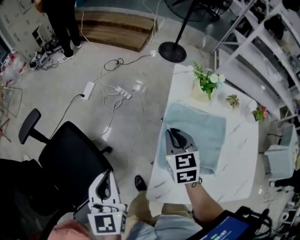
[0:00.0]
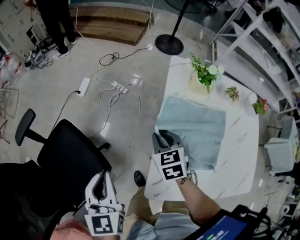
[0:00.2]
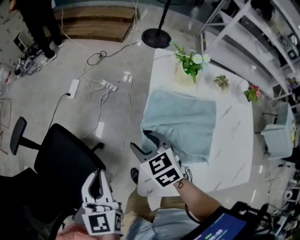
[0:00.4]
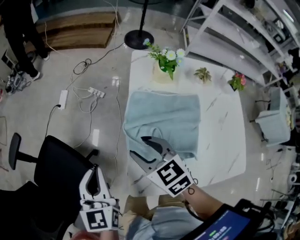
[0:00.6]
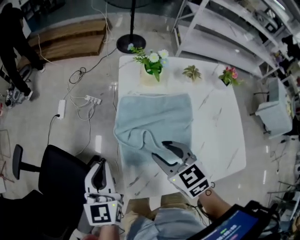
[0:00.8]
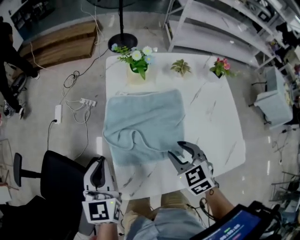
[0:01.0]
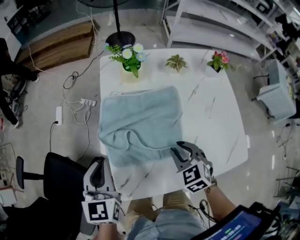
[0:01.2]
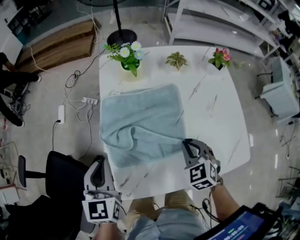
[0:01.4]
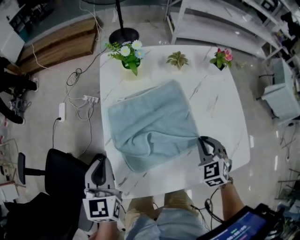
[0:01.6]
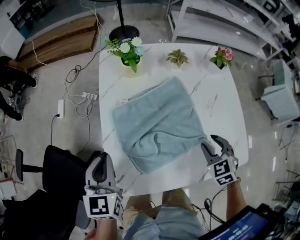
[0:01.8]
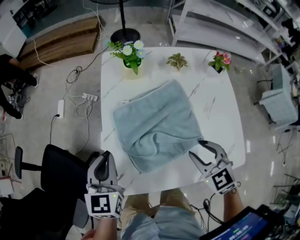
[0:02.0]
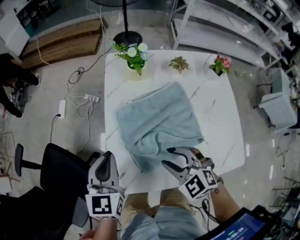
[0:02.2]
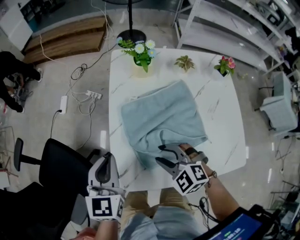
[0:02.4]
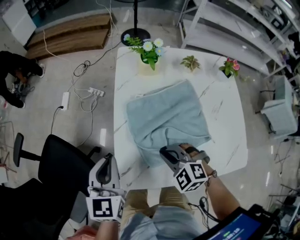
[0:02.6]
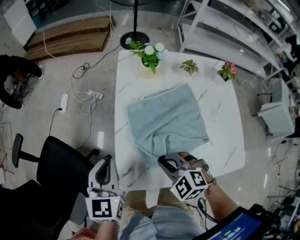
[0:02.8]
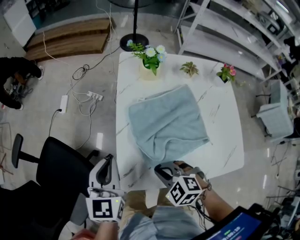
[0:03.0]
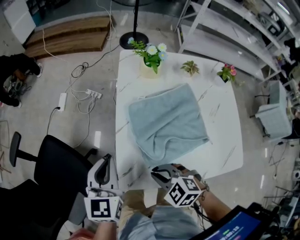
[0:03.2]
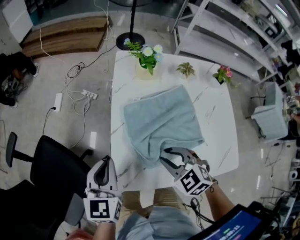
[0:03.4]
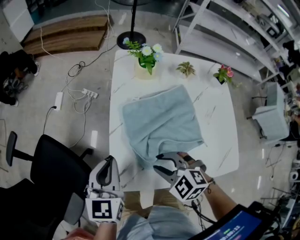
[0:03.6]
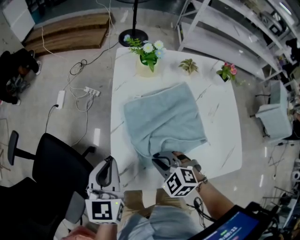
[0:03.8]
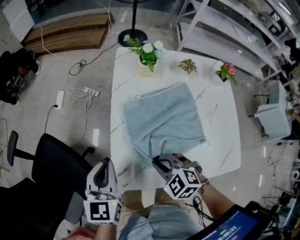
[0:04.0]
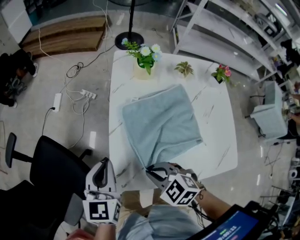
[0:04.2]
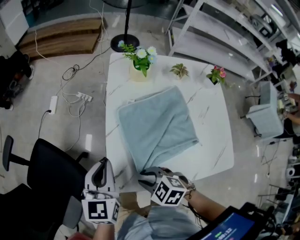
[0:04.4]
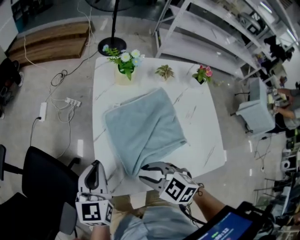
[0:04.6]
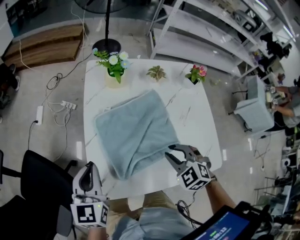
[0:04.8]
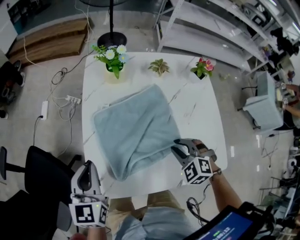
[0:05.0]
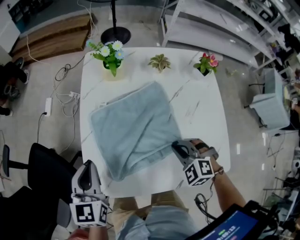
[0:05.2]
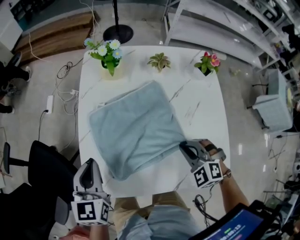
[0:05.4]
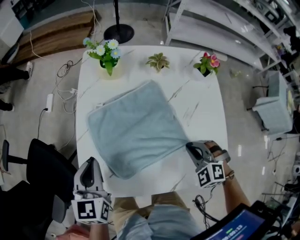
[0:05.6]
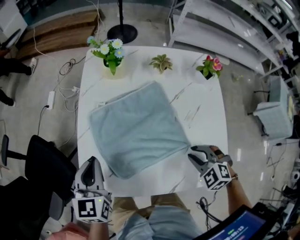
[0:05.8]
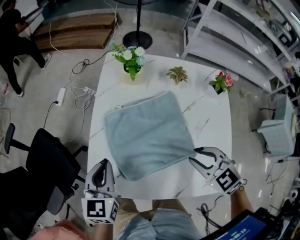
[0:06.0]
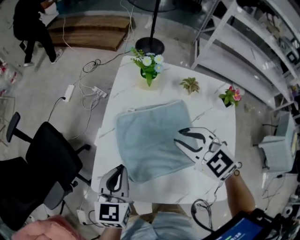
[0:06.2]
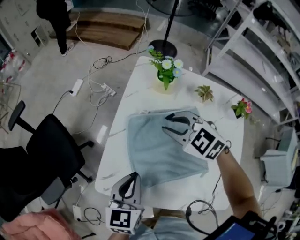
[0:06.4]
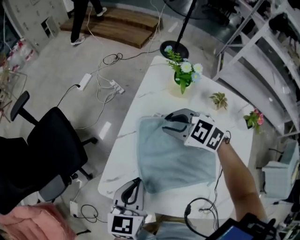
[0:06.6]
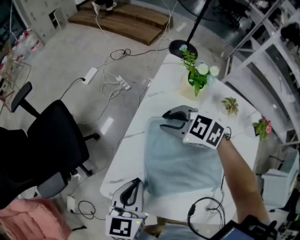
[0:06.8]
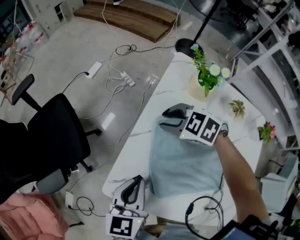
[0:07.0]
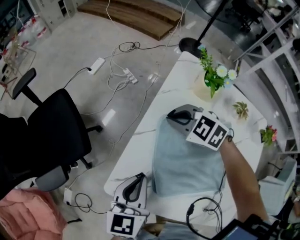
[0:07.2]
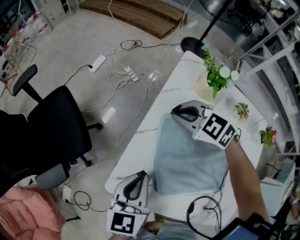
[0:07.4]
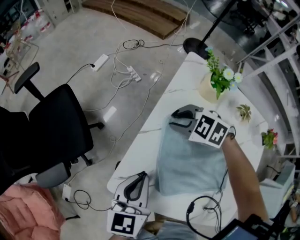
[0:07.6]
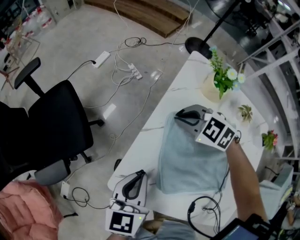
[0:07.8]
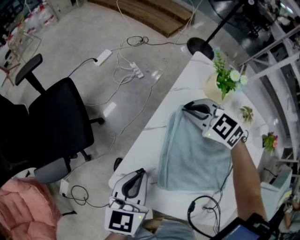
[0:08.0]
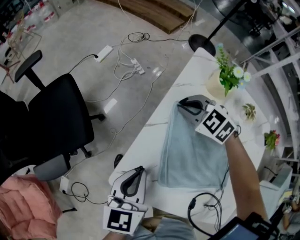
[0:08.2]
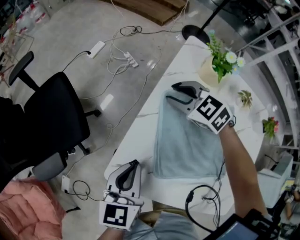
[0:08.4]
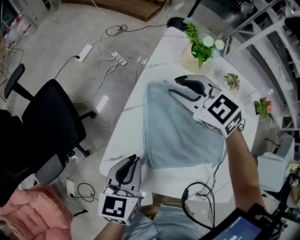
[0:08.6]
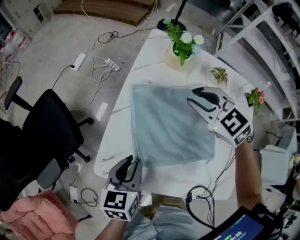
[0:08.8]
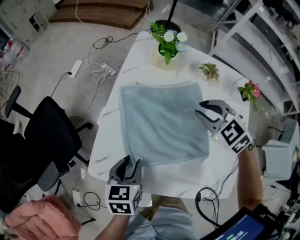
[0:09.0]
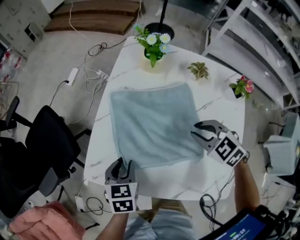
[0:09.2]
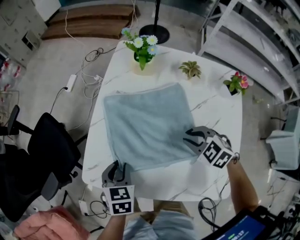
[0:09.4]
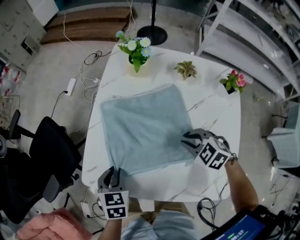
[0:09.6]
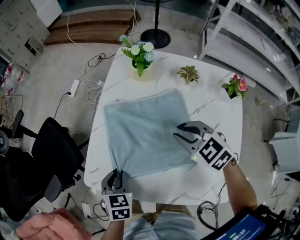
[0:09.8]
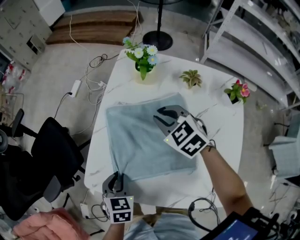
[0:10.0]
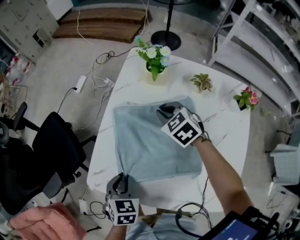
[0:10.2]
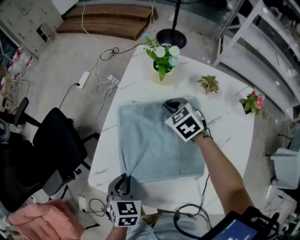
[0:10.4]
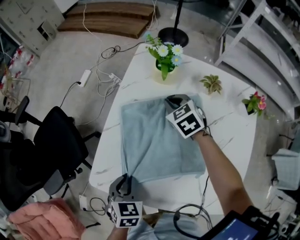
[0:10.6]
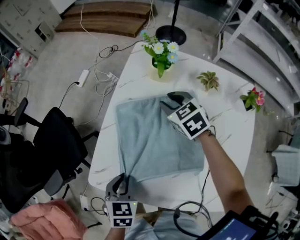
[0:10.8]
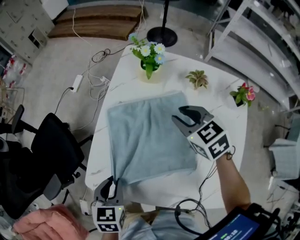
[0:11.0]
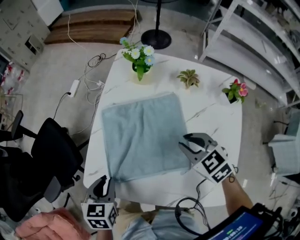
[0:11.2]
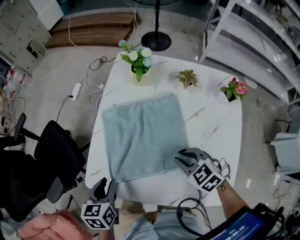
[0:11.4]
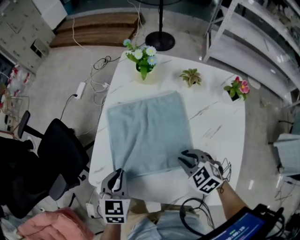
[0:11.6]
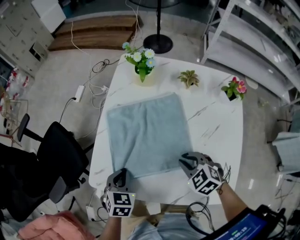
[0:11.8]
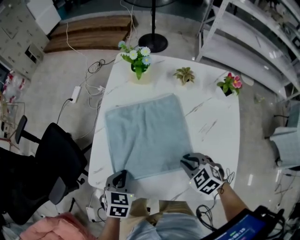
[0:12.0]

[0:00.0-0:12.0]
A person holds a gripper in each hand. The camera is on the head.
0:00.0 to 0:01.6: The left gripper shifts by approximately 20 cm, and turns by about 20 degrees. Meanwhile the right gripper moves up and down over roughly 10 cm, changing direction 2 times, swivels about 20 degrees, and opens, then closes again.
0:01.6 to 0:03.0: The left gripper moves roughly 5 cm. Meanwhile the right gripper ends up some 25 cm from where it was, swivels roughly 50 degrees, and opens, then closes again.
0:03.0 to 0:04.4: The right gripper travels to the right and back again, approximately 5 cm each way.
0:04.4 to 0:06.0: The left gripper changes place by about 10 cm, while the right gripper moves up and down over about 10 cm, changing direction 2 times.
0:06.0 to 0:07.6: The right gripper moves approximately 35 cm, turns by about 40 degrees, and closes, then reopens; the left gripper moves about 5 cm.
0:07.6 to 0:09.0: The right gripper changes place by about 25 cm, and turns by approximately 30 degrees, while the left gripper ends up some 10 cm from where it was, turns by some 20 degrees, and opens up.
0:09.0 to 0:10.4: The right gripper heads forward and downward, covering approximately 15 cm, while the left gripper rotates about 20 degrees.
0:10.4 to 0:12.0: The right gripper goes some 30 cm backward.

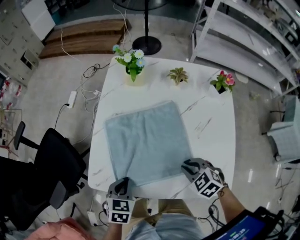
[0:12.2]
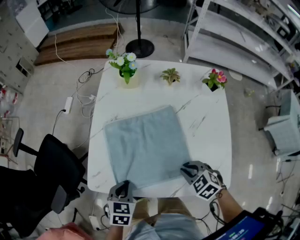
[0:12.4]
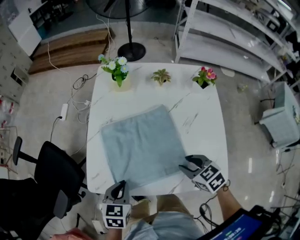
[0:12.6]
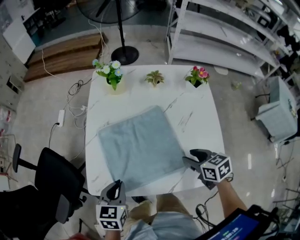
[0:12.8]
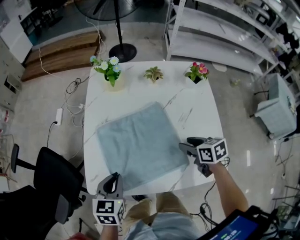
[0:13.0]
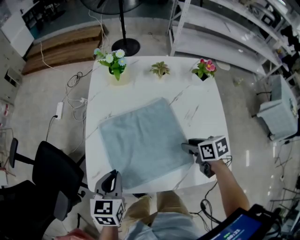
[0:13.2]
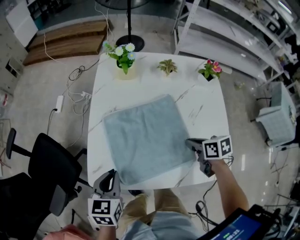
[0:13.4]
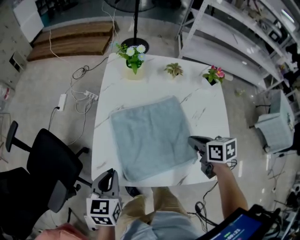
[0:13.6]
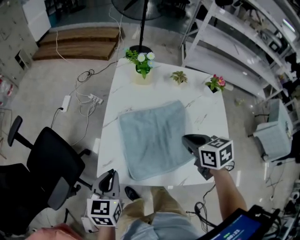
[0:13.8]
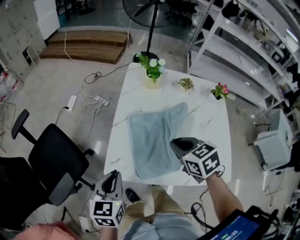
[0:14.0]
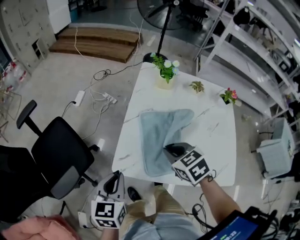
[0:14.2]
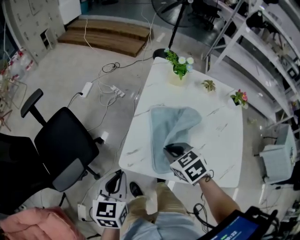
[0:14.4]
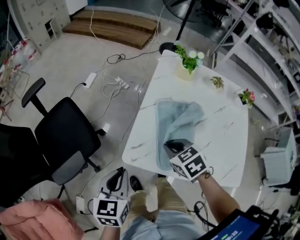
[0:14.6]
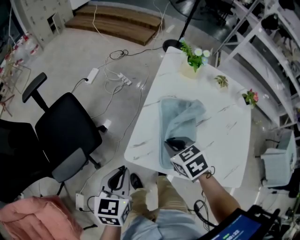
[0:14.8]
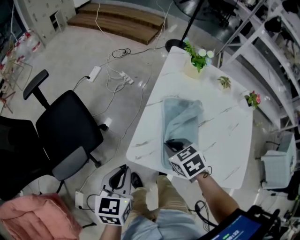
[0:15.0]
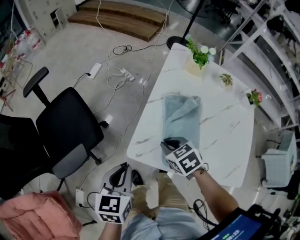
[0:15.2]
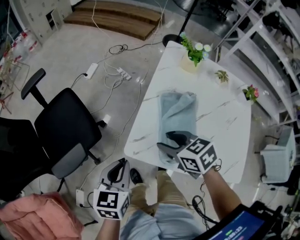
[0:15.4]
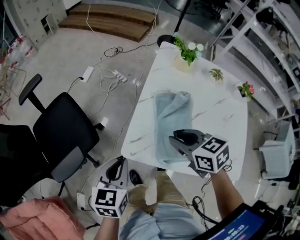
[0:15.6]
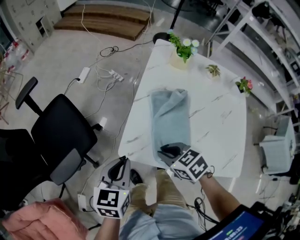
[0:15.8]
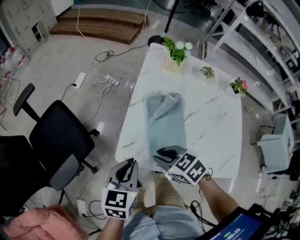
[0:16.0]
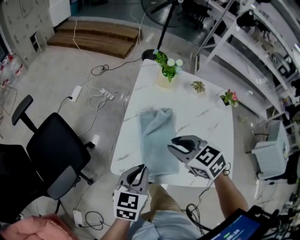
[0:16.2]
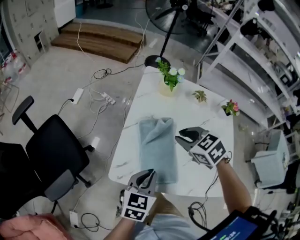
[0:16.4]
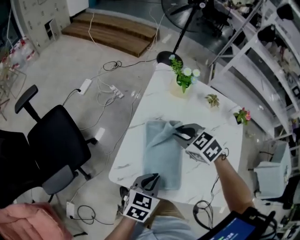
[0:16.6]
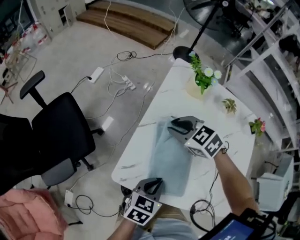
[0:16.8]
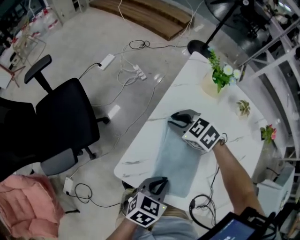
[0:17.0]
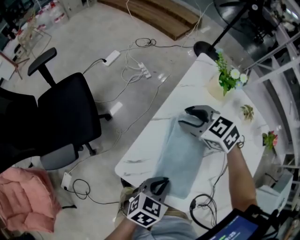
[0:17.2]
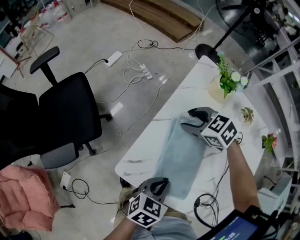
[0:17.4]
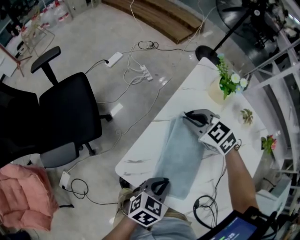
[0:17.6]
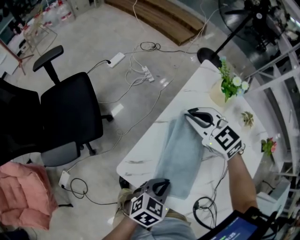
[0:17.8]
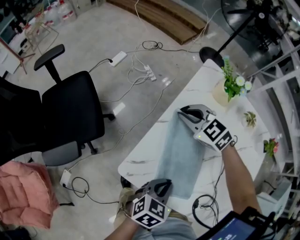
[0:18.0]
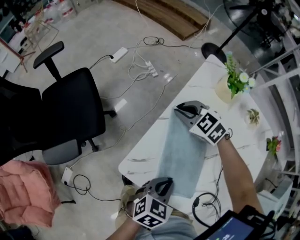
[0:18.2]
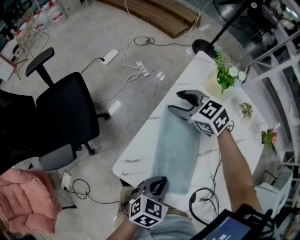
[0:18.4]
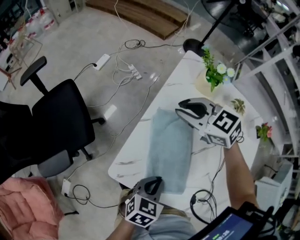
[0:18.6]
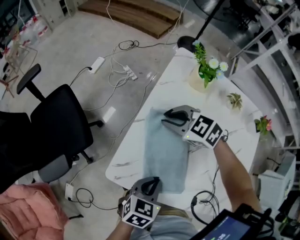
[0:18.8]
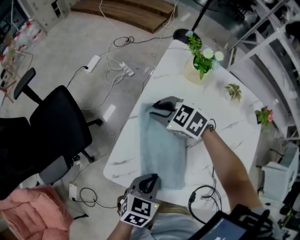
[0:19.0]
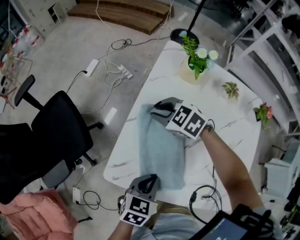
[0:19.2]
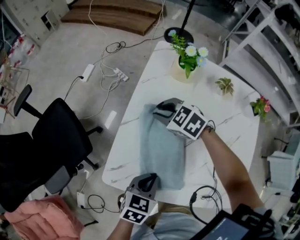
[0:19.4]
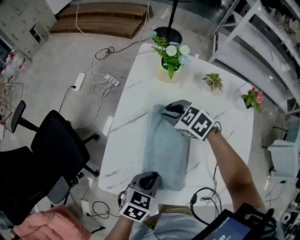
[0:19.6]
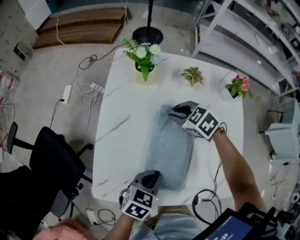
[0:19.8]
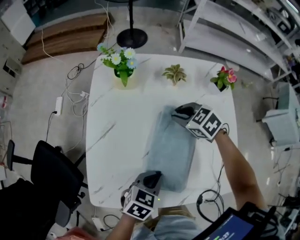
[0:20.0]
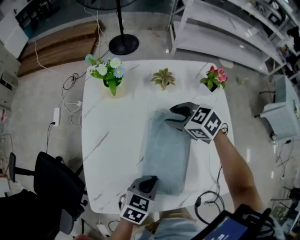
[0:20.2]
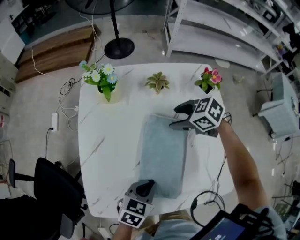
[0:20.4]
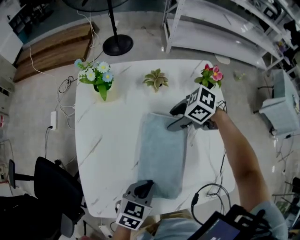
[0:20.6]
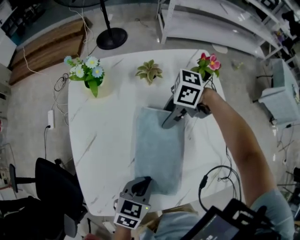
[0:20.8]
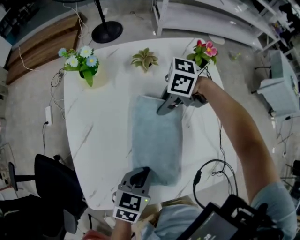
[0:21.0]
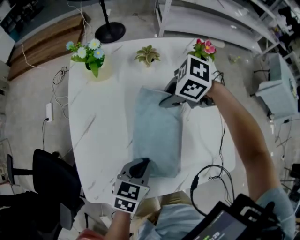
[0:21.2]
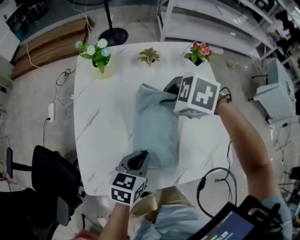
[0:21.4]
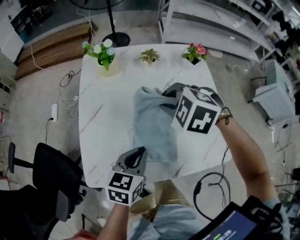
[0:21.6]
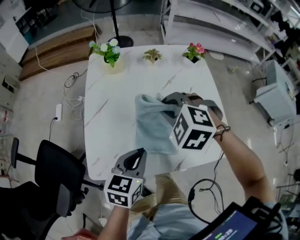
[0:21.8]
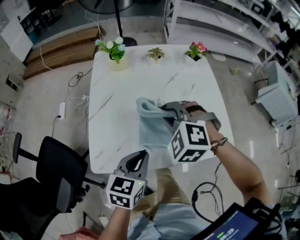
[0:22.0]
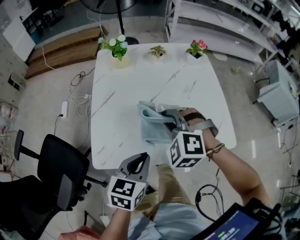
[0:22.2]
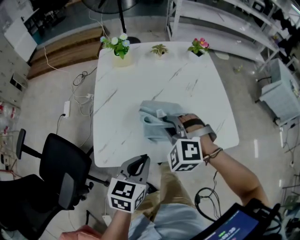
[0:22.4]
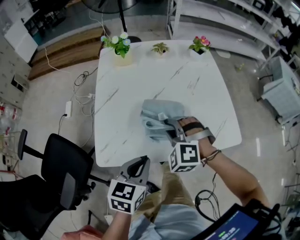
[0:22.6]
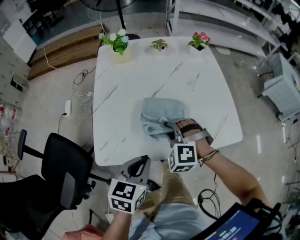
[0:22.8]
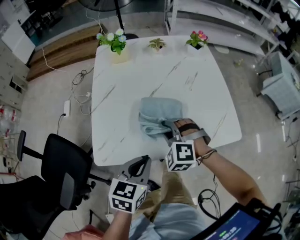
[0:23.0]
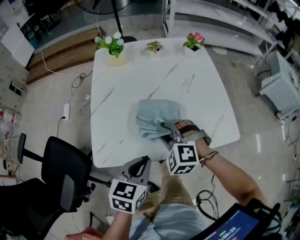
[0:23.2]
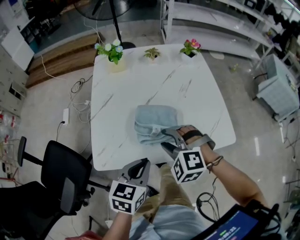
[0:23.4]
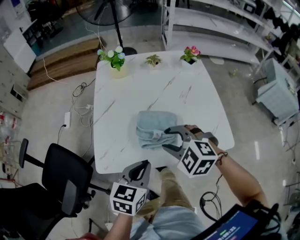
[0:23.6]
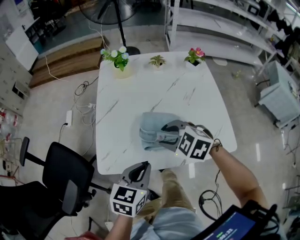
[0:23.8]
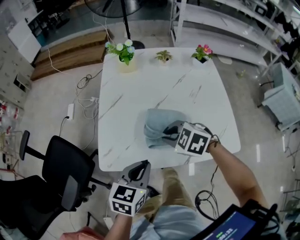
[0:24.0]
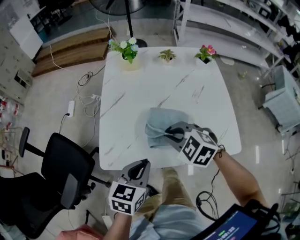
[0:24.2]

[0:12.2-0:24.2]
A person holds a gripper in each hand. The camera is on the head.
0:12.2 to 0:13.8: The right gripper moves up and down over some 10 cm, changing direction 2 times, turns by some 40 degrees, and opens, then closes again; the left gripper goes approximately 15 cm to the left and upward, and turns by some 30 degrees.
0:13.8 to 0:15.2: The left gripper shifts approximately 10 cm to the left. The right gripper shifts roughly 25 cm to the left and downward, and turns by some 30 degrees.
0:15.2 to 0:16.6: The right gripper is displaced to the right, forward and upward by about 20 cm, and opens, then closes again; the left gripper goes some 20 cm to the right, and changes its angle by approximately 20 degrees.
0:16.6 to 0:18.2: The right gripper is displaced to the left, forward and downward by some 15 cm, rotates about 30 degrees, and opens, then closes again.
0:18.2 to 0:19.8: The left gripper moves approximately 10 cm, and swivels approximately 20 degrees; the right gripper travels upward and back again, some 10 cm each way, turns by some 40 degrees, and opens, then closes once more.
0:19.8 to 0:21.2: The right gripper shifts by approximately 10 cm, changes its angle by approximately 30 degrees, and opens, then closes once more.
0:21.2 to 0:22.6: The right gripper travels upward and back again, approximately 10 cm each way, and rotates approximately 70 degrees. Meanwhile the left gripper moves about 15 cm.
0:22.6 to 0:24.2: The right gripper moves up and down over some 10 cm, changing direction 2 times, changes its angle by approximately 40 degrees, and opens, then closes again.
